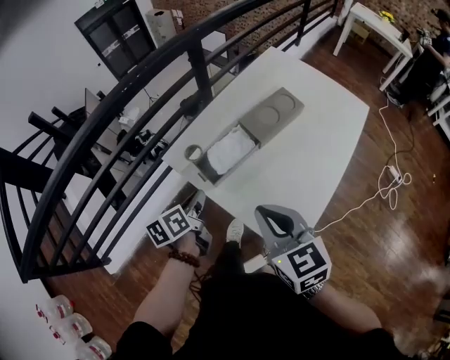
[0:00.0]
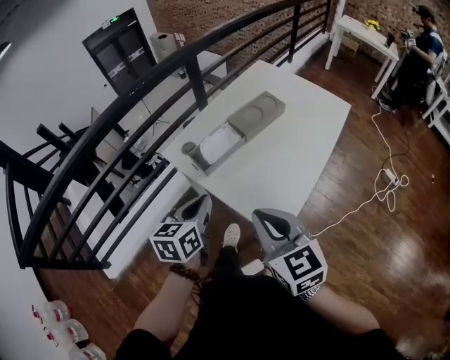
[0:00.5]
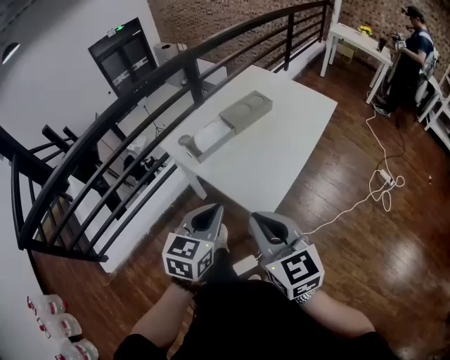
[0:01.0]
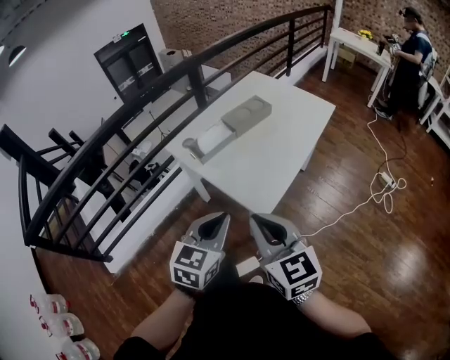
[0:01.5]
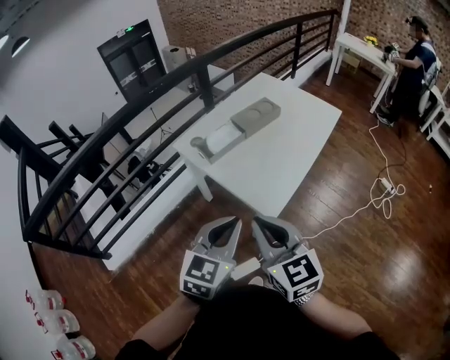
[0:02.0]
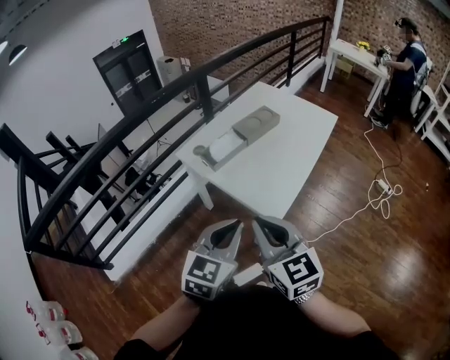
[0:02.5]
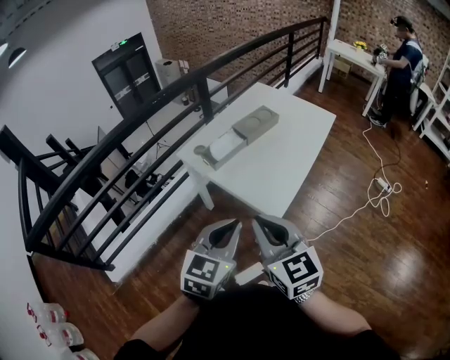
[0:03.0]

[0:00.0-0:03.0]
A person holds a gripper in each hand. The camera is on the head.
0:00.0 to 0:01.5: The left gripper heads backward, upward and to the right, covering some 35 cm, and twists about 50 degrees clockwise, seen from behind, while the right gripper shifts roughly 20 cm backward.
0:01.5 to 0:03.0: The right gripper travels to the left by about 5 cm, while the left gripper ends up approximately 5 cm from where it was.

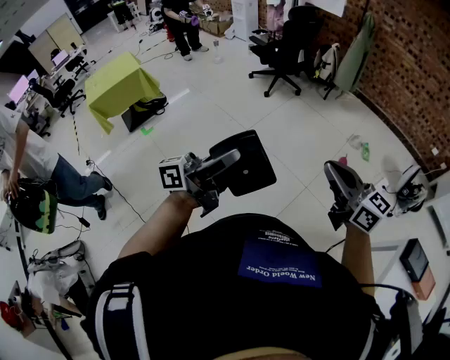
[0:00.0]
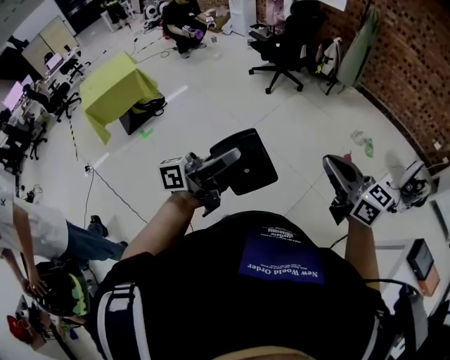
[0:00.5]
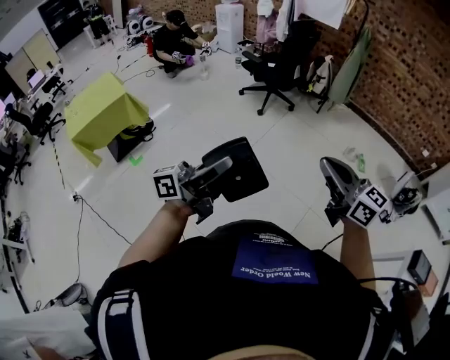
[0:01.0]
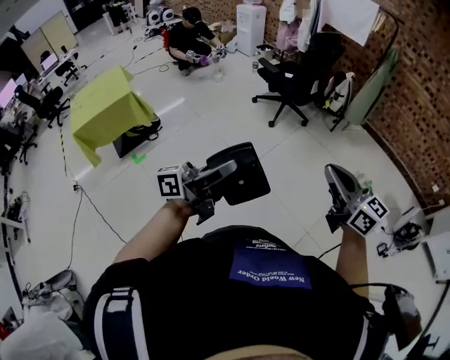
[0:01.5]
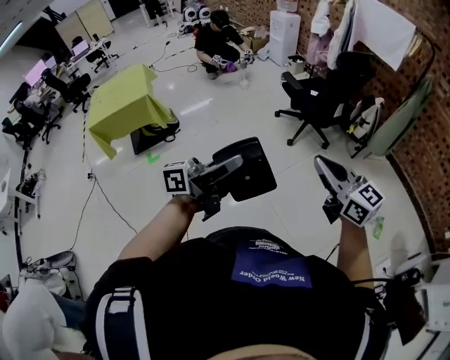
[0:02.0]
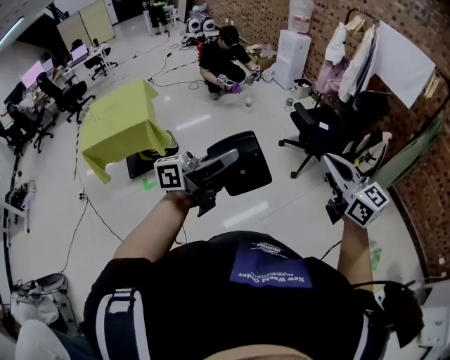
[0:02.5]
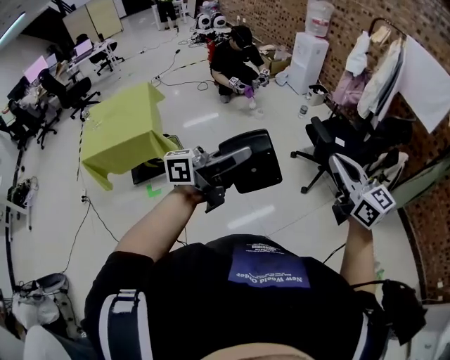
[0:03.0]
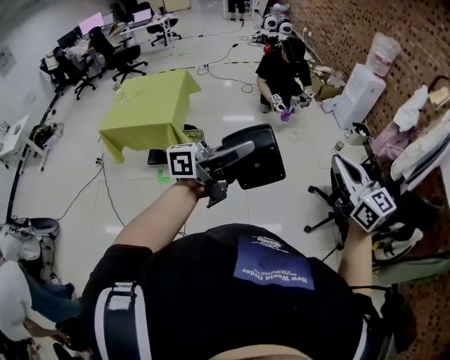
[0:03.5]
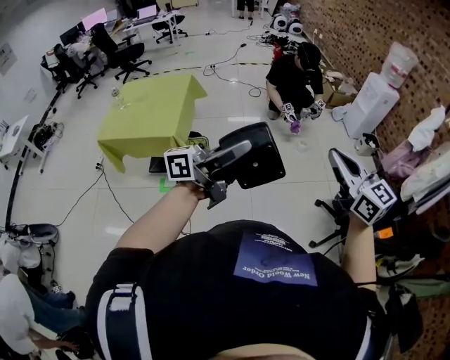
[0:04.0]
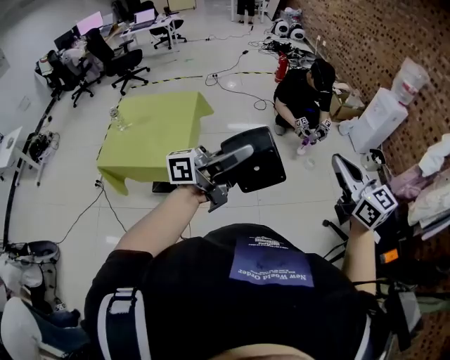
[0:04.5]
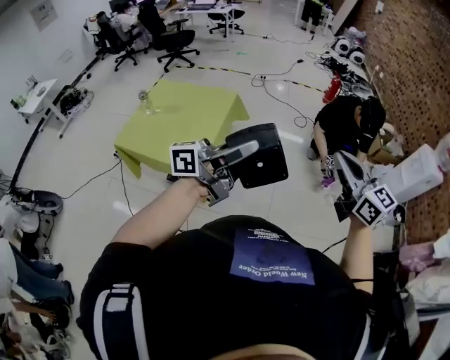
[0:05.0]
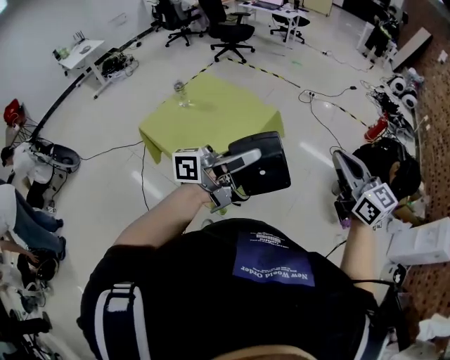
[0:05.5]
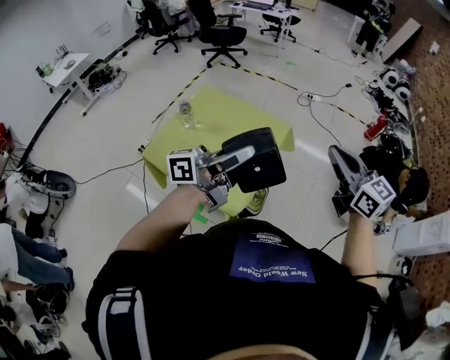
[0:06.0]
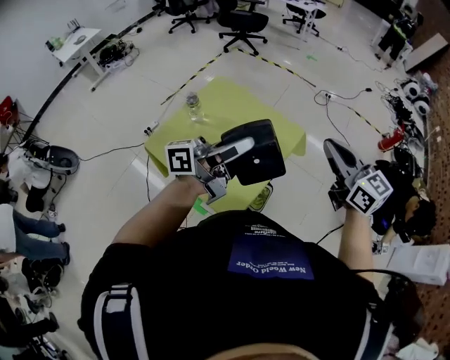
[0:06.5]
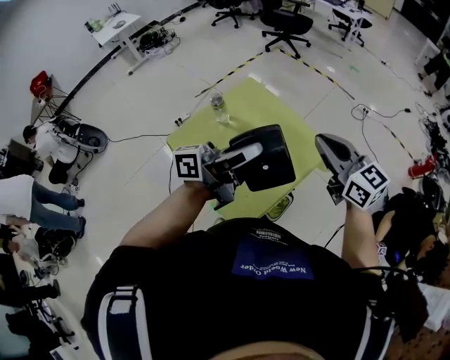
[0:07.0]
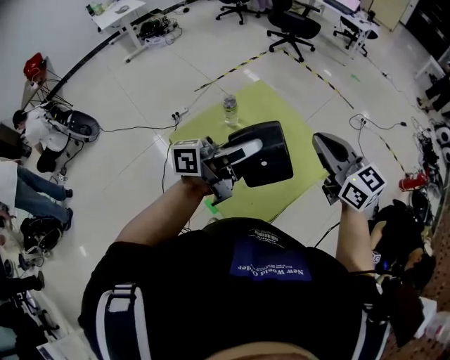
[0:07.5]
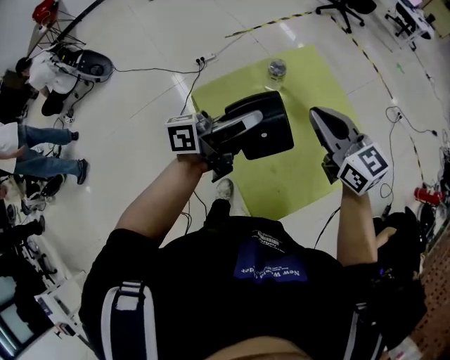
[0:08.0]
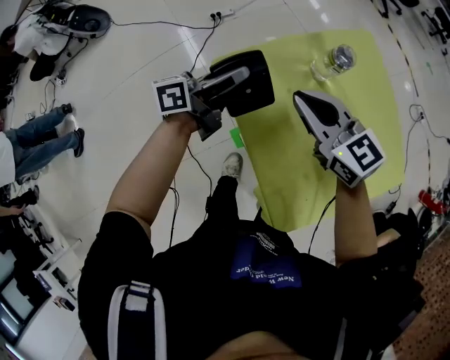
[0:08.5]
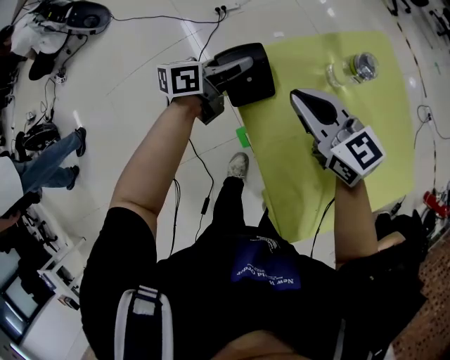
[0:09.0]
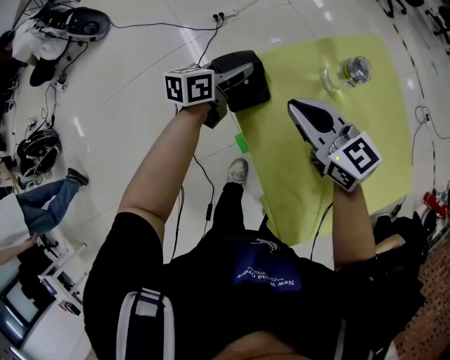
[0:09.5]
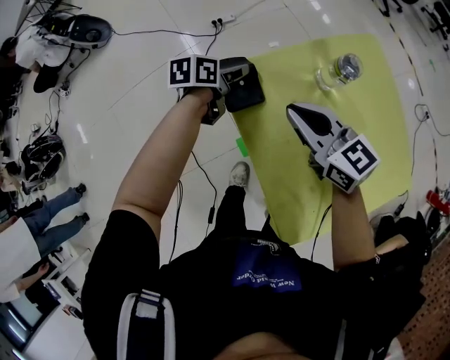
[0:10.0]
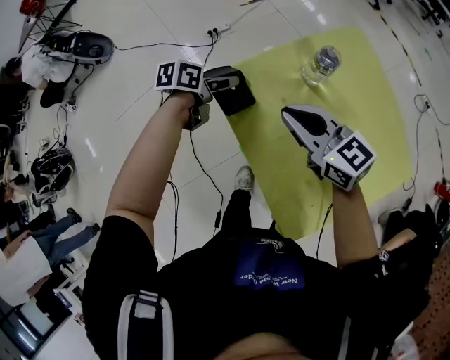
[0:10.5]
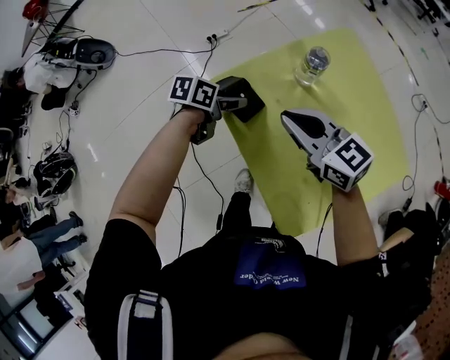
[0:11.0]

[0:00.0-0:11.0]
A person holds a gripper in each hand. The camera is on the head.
0:00.0 to 0:02.0: The pair of grippers is taken forward, approximately 50 cm.
0:02.0 to 0:03.5: The two grippers travel together, forward and to the left, approximately 60 cm. The left gripper changes its angle by approximately 20 degrees.
0:03.5 to 0:05.5: Both grippers are carried about 70 cm. The right gripper swivels approximately 40 degrees. Meanwhile the left gripper turns by some 40 degrees.
0:05.5 to 0:07.5: Both grippers travel together to the left and forward, about 40 cm. The right gripper changes its angle by roughly 20 degrees.
0:07.5 to 0:09.0: The right gripper moves approximately 50 cm, and rotates about 30 degrees; the left gripper changes place by some 50 cm, and tips its fingers downward by roughly 30 degrees.
0:09.0 to 0:11.0: The right gripper changes place by some 10 cm; the left gripper ends up about 10 cm from where it was, angles its fingers downward, by some 30 degrees, and opens its fingers.

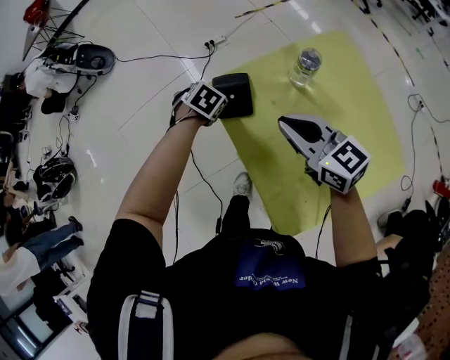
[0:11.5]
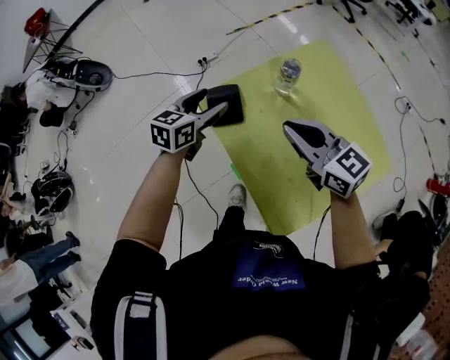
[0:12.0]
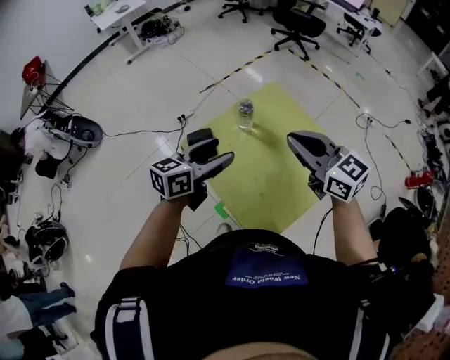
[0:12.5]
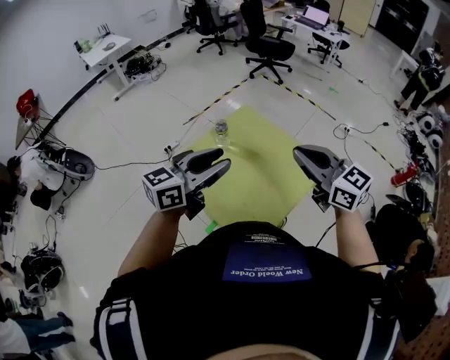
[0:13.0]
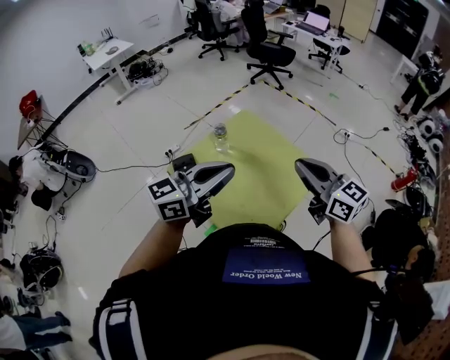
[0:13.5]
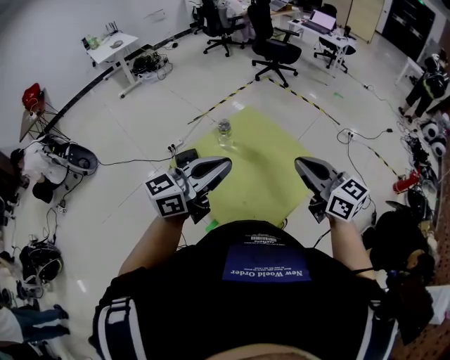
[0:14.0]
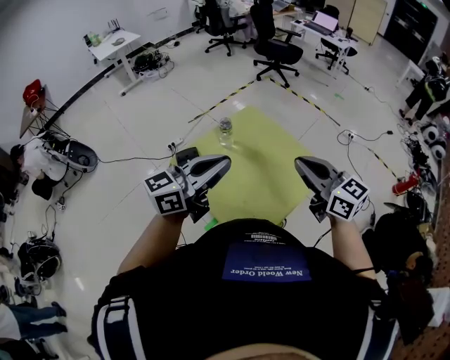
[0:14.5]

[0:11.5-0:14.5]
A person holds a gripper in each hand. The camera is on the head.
0:11.5 to 0:13.0: The right gripper ends up some 35 cm from where it was, and swivels about 30 degrees; the left gripper heads upward, covering roughly 40 cm, angles its fingers upward, by about 70 degrees, and closes up.
0:13.0 to 0:14.5: The left gripper closes.

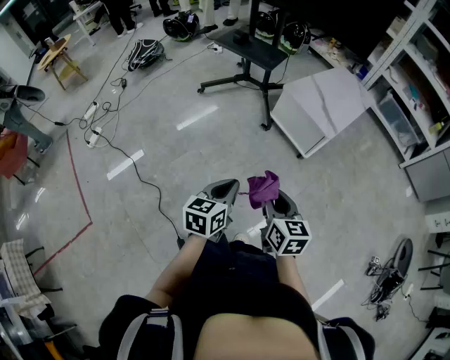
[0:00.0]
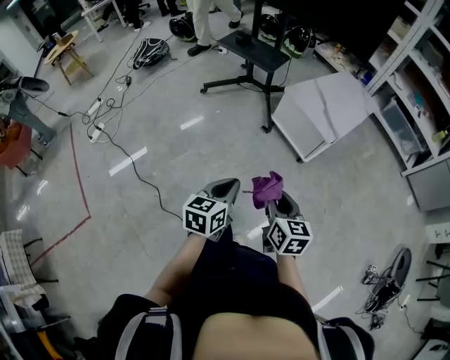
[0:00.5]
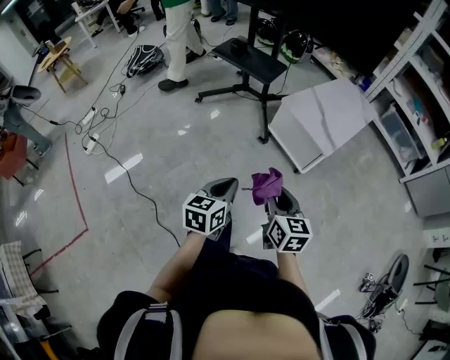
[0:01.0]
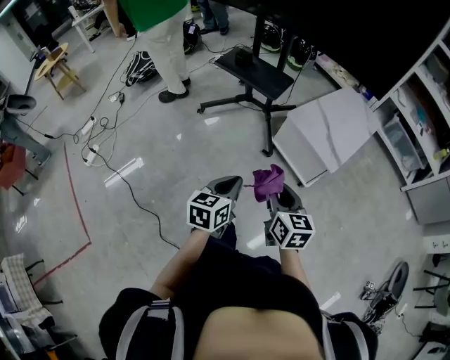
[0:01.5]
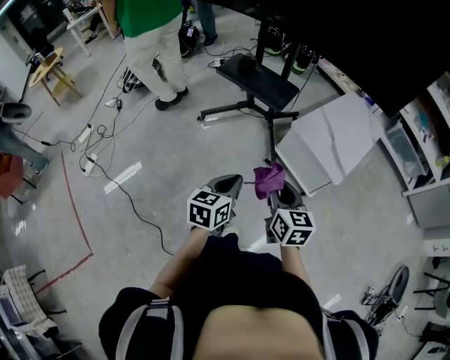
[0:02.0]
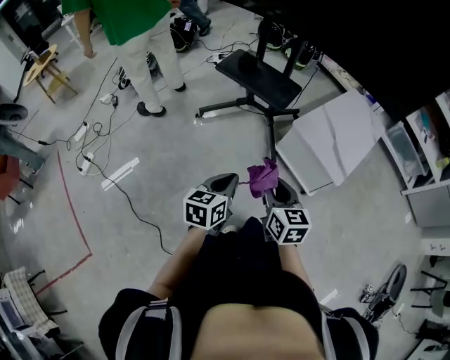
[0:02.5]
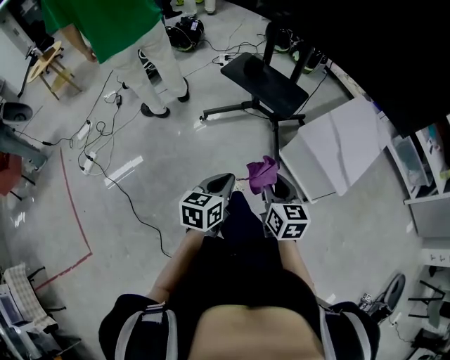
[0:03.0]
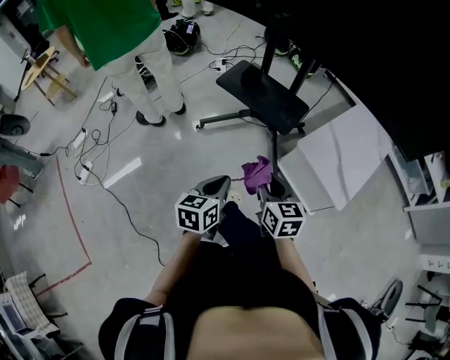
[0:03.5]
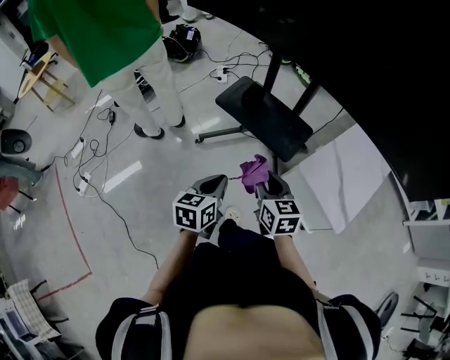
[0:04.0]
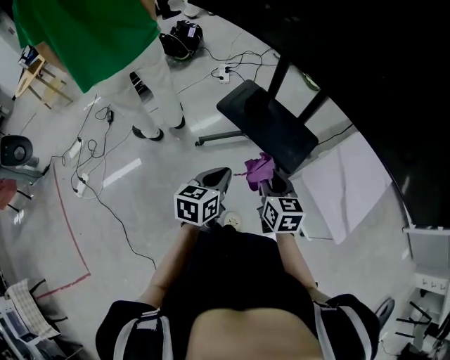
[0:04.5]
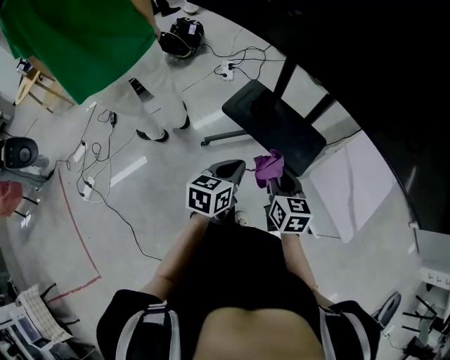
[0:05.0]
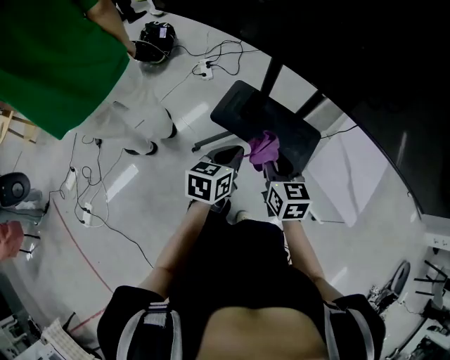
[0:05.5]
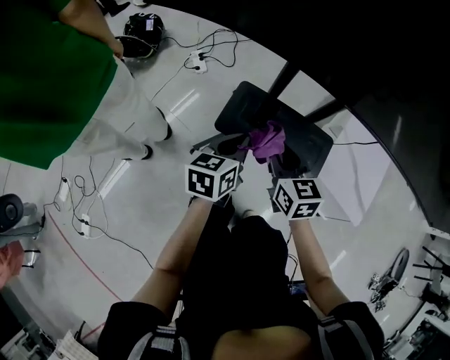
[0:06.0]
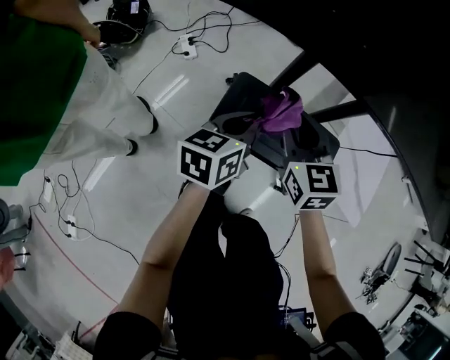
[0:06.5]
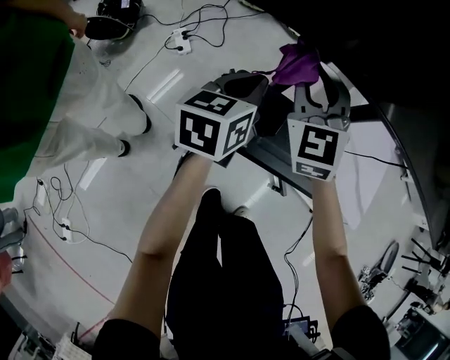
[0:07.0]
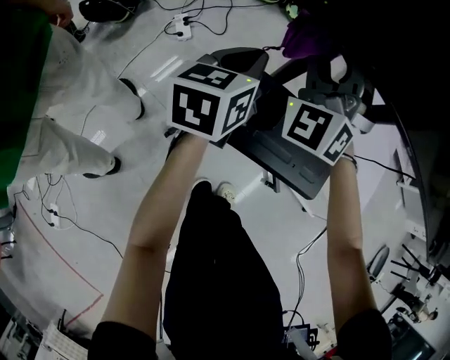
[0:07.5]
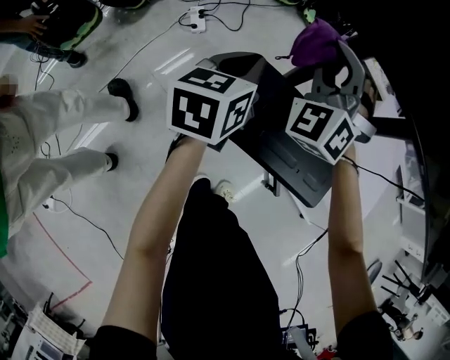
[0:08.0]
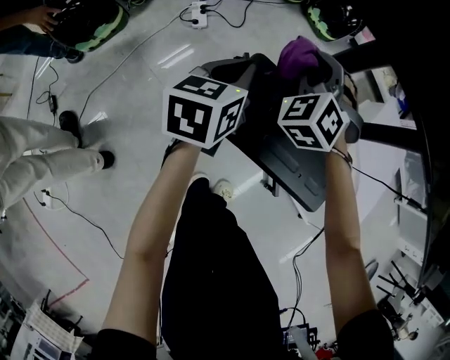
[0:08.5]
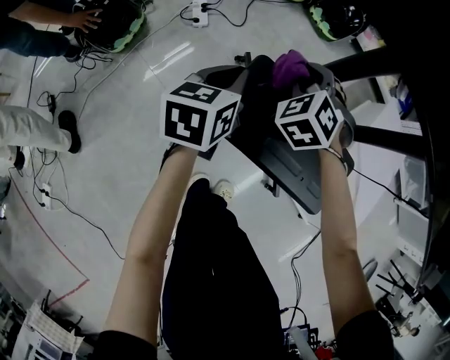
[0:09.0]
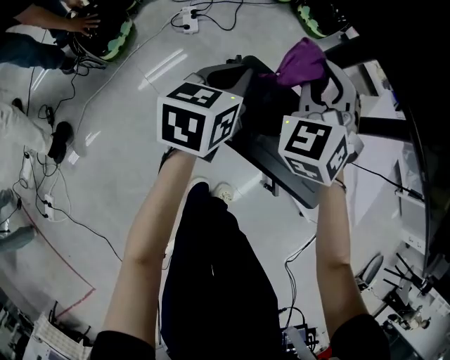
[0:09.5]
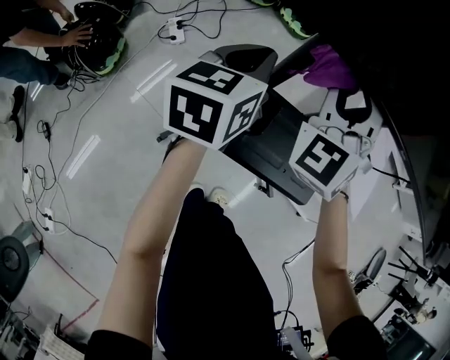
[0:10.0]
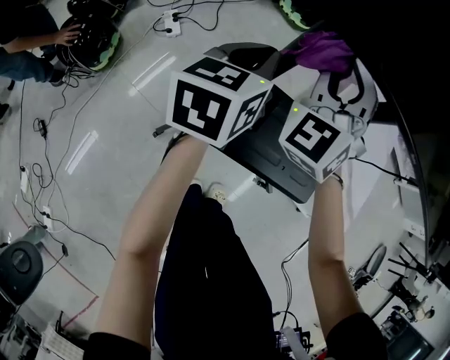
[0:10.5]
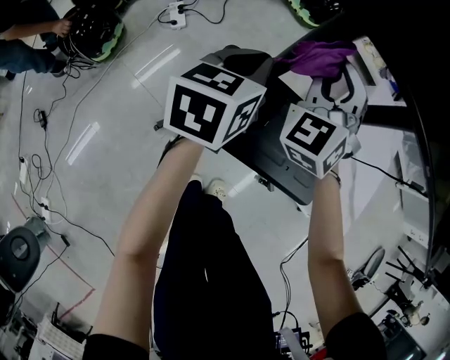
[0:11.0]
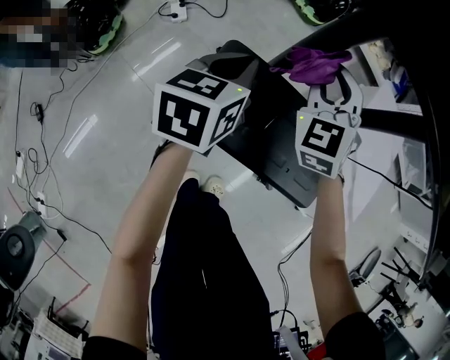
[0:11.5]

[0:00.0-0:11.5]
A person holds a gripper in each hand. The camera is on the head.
0:00.0 to 0:02.0: The grippers both shift forward by approximately 30 cm.
0:02.0 to 0:04.0: Both grippers travel together forward, about 30 cm.
0:04.0 to 0:06.0: The right gripper goes some 30 cm forward and to the left; the left gripper heads forward, covering about 35 cm.
0:06.0 to 0:07.5: Both grippers move forward, approximately 20 cm. The right gripper rolls counterclockwise, seen from behind, by some 70 degrees.
0:07.5 to 0:09.5: The grippers both shift downward by some 10 cm. The right gripper rotates about 20 degrees.
0:09.5 to 0:11.5: The left gripper moves roughly 10 cm upward and comes back. The right gripper goes some 10 cm to the right and downward.
